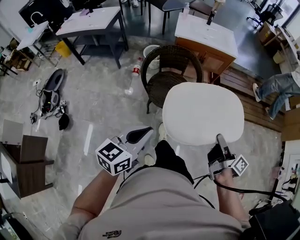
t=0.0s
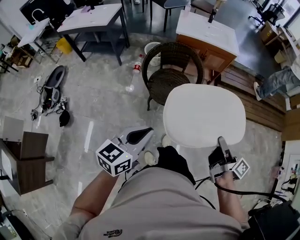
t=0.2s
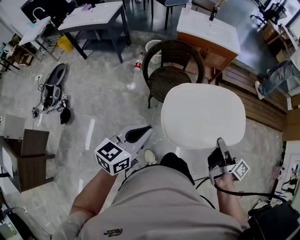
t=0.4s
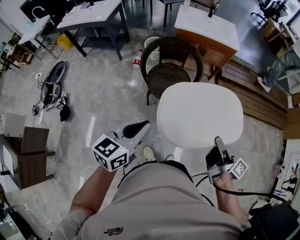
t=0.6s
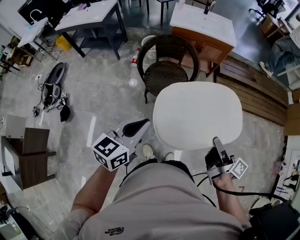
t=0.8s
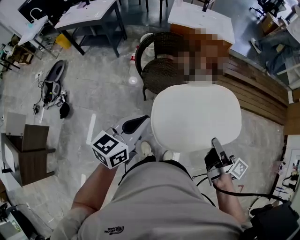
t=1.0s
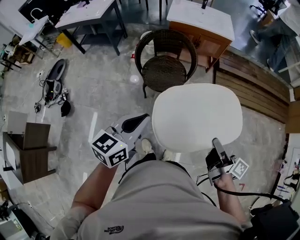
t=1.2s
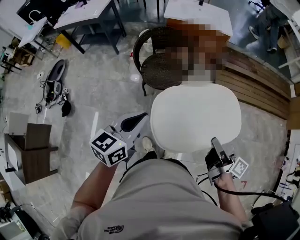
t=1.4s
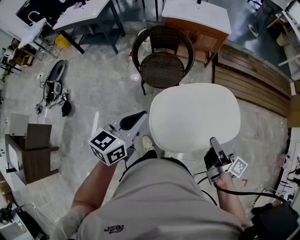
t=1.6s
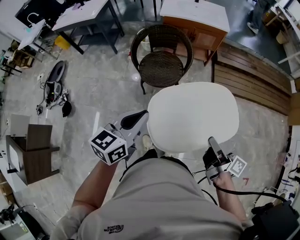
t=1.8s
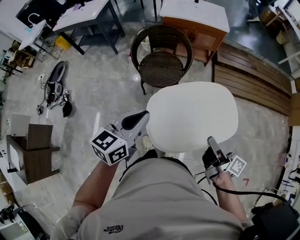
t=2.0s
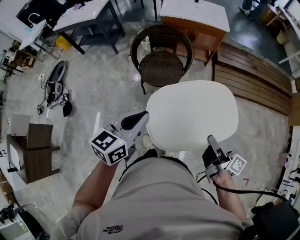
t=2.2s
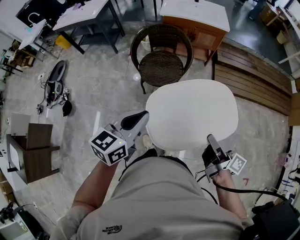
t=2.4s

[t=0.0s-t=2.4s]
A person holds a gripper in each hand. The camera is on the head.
t=0.0s to t=1.2s: The left gripper moves some 10 cm.

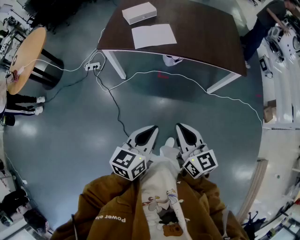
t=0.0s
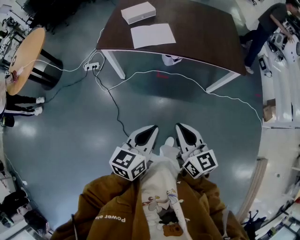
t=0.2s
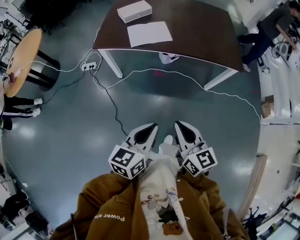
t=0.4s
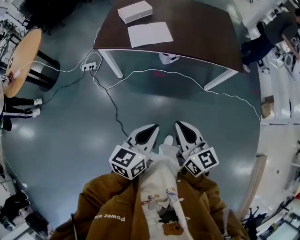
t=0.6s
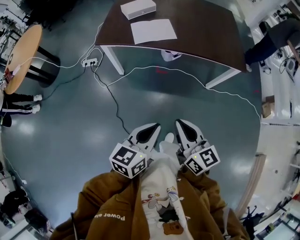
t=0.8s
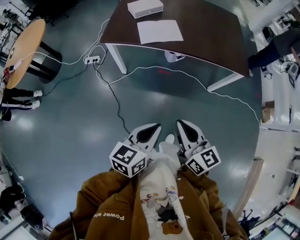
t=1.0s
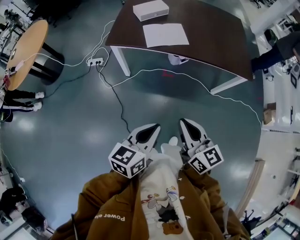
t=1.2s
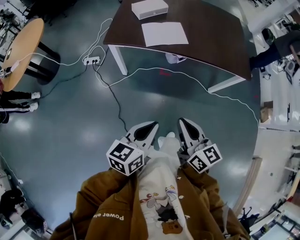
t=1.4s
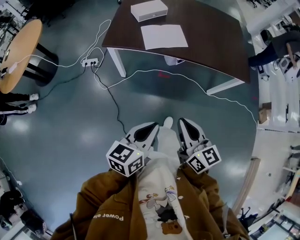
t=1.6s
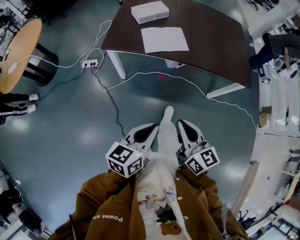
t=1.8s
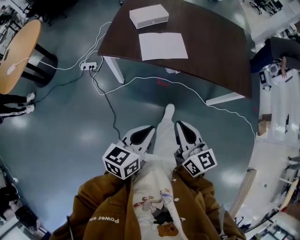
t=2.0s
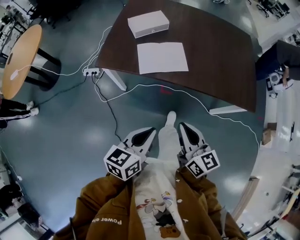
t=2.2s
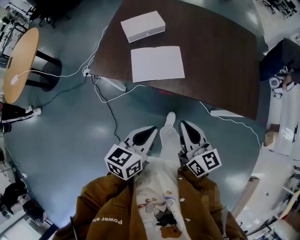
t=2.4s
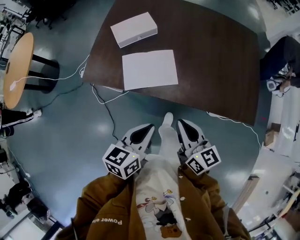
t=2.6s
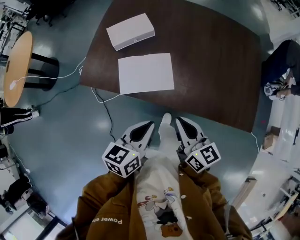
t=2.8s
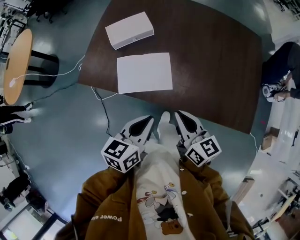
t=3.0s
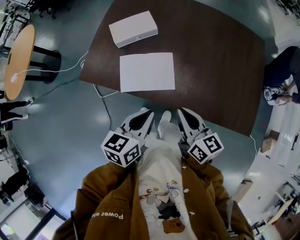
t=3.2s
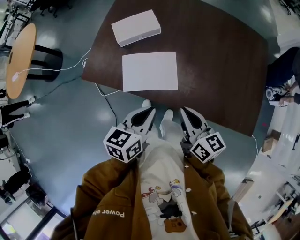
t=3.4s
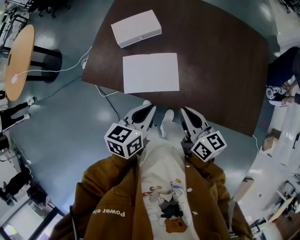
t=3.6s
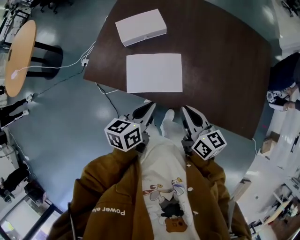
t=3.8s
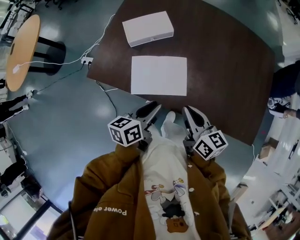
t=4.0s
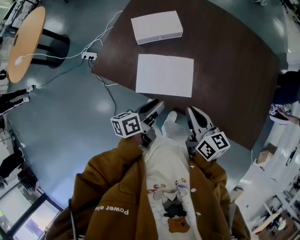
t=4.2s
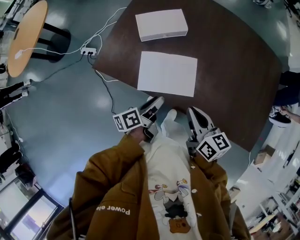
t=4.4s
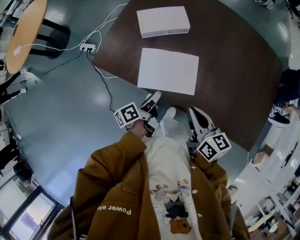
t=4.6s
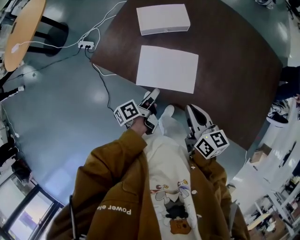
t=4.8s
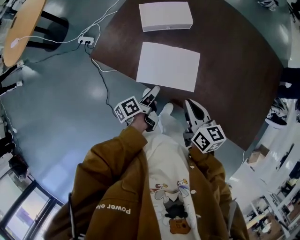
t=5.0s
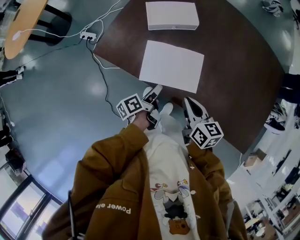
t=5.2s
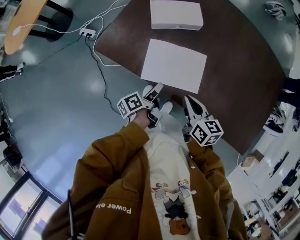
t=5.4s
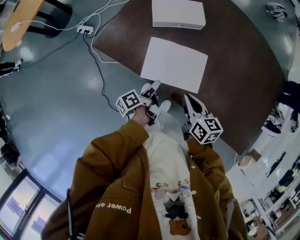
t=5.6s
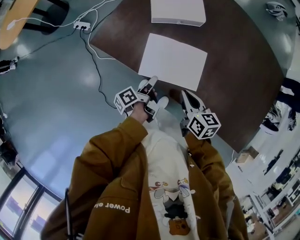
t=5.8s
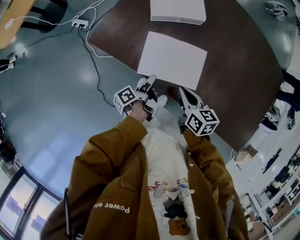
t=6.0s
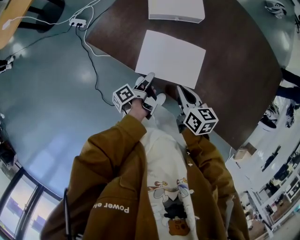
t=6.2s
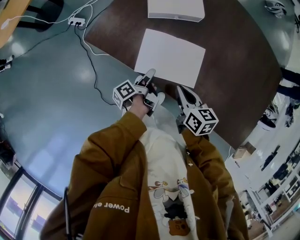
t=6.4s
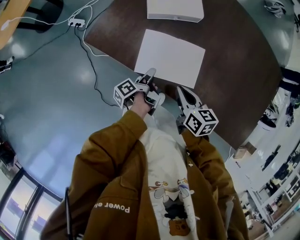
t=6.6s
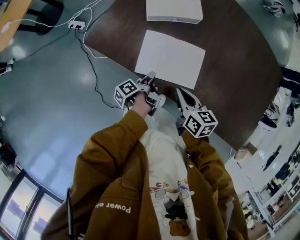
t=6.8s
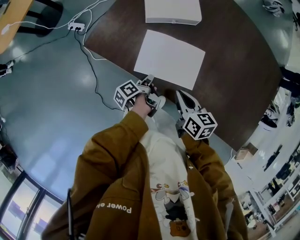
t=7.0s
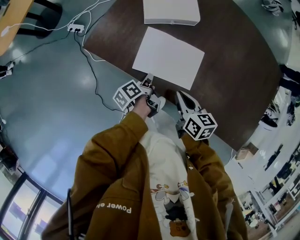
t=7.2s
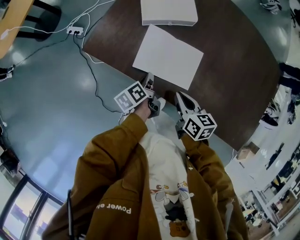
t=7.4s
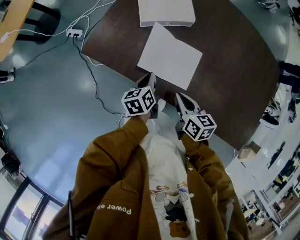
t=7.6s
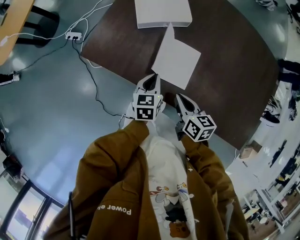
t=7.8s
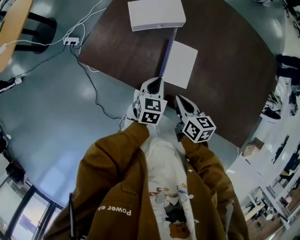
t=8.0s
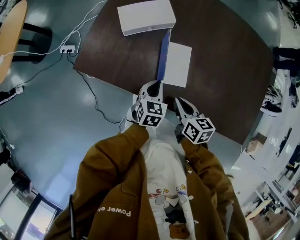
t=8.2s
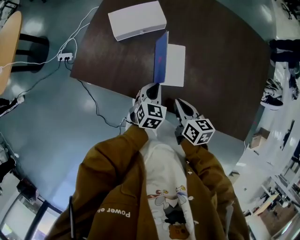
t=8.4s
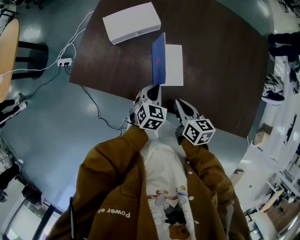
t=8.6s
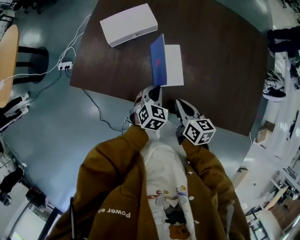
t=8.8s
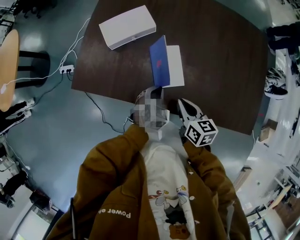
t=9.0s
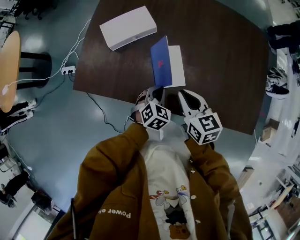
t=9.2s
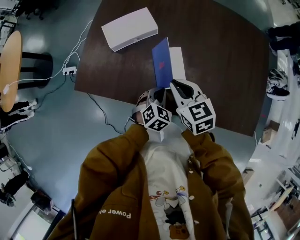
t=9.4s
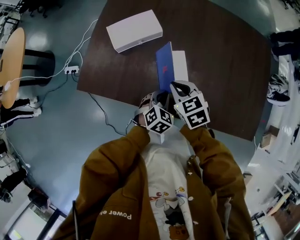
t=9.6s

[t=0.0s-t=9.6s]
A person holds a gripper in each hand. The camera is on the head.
t=0.0s to t=1.6s: Both grippers travel together to the left and forward, approximately 15 cm.
t=1.6s to t=3.2s: The pair of grippers is taken forward, approximately 50 cm.
t=3.2s to t=4.8s: The right gripper is displaced to the left and downward by about 10 cm, while the left gripper heads downward and to the left, covering about 20 cm, twists some 60 degrees counterclockwise, seen from behind, and opens its fingers.
t=4.8s to t=6.4s: The two grippers go approximately 10 cm downward. The left gripper swivels about 20 degrees.
t=6.4s to t=8.0s: The left gripper shifts roughly 10 cm to the right and upward, rotates around the line of its fingers by about 100 degrees, clockwise from behind, and closes its fingers.
t=8.0s to t=9.6s: The left gripper shifts approximately 10 cm to the right, and rotates some 40 degrees, while the right gripper is displaced forward by about 10 cm, and rotates some 30 degrees.

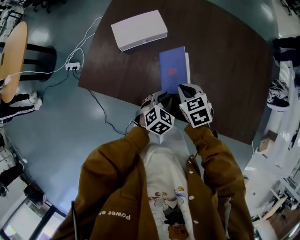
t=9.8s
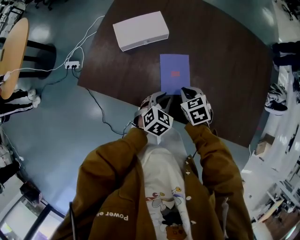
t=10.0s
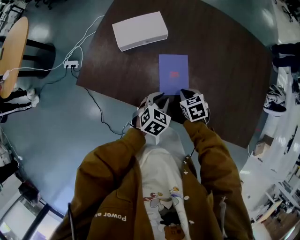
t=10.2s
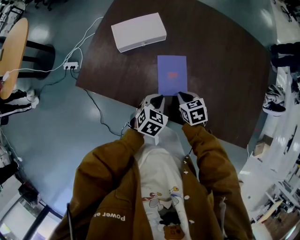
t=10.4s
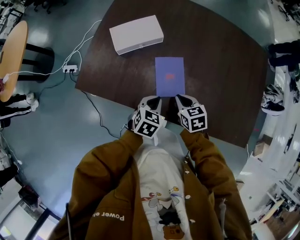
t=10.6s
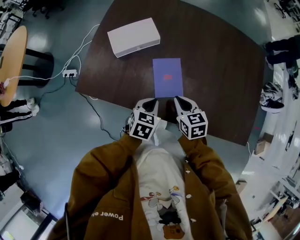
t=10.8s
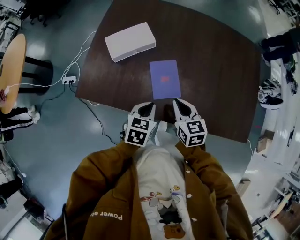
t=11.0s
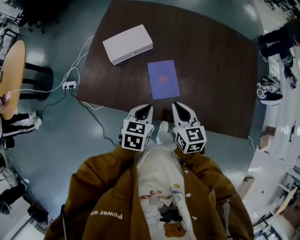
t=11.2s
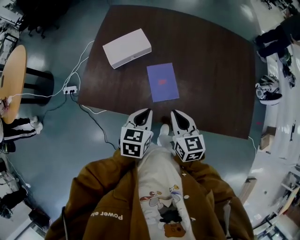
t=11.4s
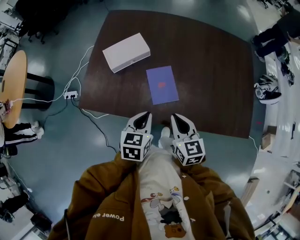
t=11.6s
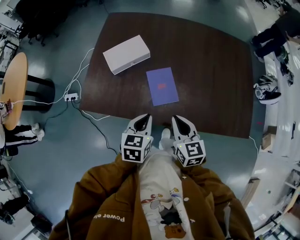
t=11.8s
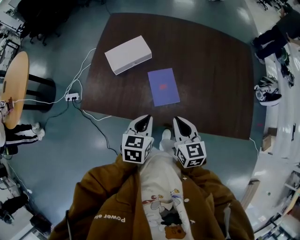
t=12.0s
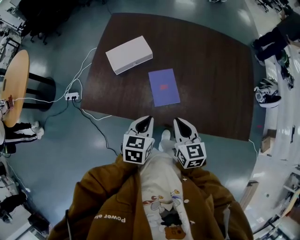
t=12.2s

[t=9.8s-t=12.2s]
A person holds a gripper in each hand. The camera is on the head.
t=9.8s to t=11.0s: The right gripper heads upward, covering about 5 cm, and swivels some 30 degrees. Meanwhile the left gripper heads upward, covering approximately 10 cm, rotates approximately 20 degrees, and closes.
t=11.0s to t=12.2s: The left gripper travels upward by approximately 5 cm, while the right gripper shifts about 10 cm backward and upward.

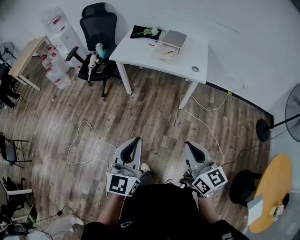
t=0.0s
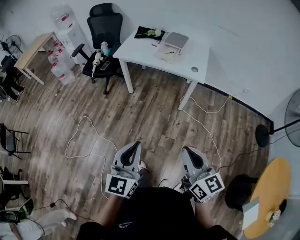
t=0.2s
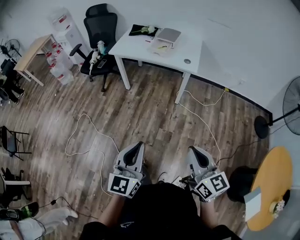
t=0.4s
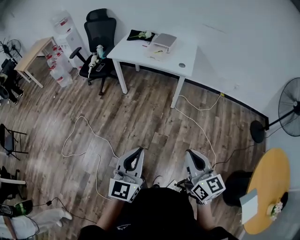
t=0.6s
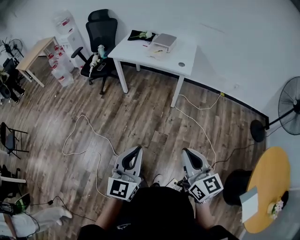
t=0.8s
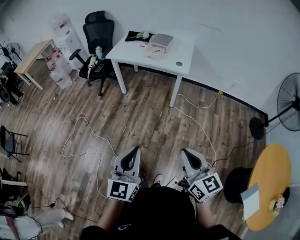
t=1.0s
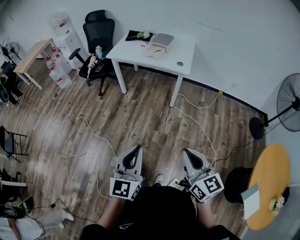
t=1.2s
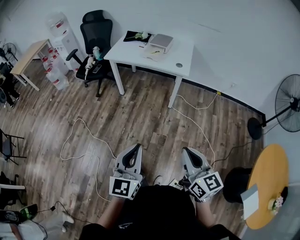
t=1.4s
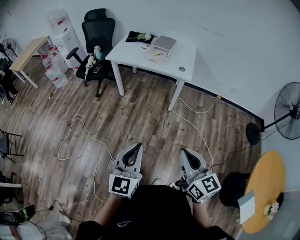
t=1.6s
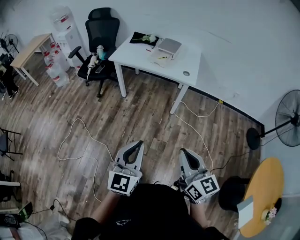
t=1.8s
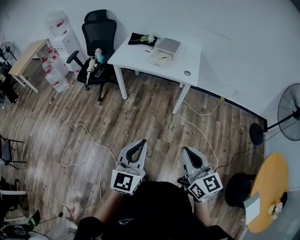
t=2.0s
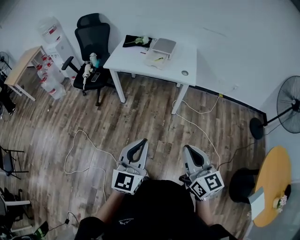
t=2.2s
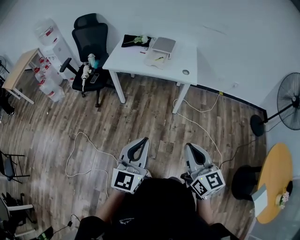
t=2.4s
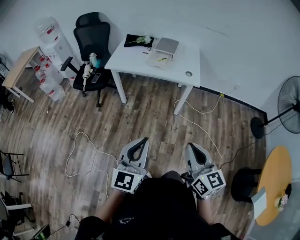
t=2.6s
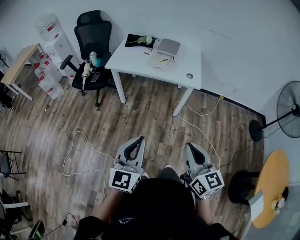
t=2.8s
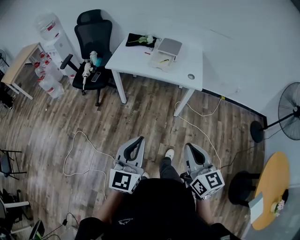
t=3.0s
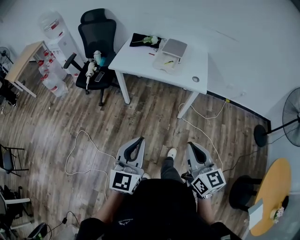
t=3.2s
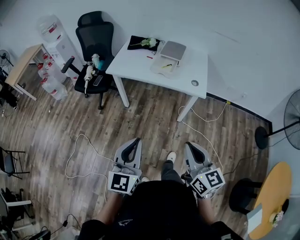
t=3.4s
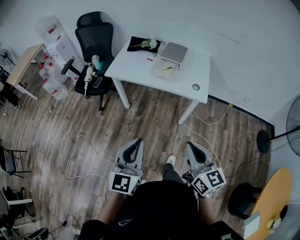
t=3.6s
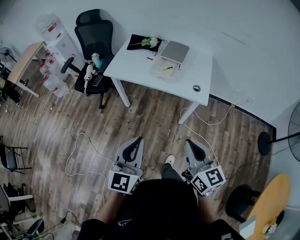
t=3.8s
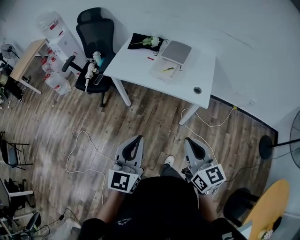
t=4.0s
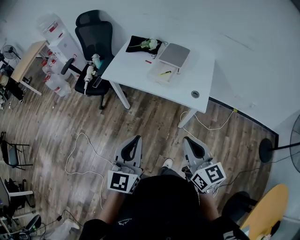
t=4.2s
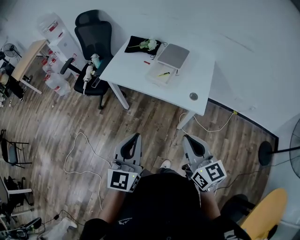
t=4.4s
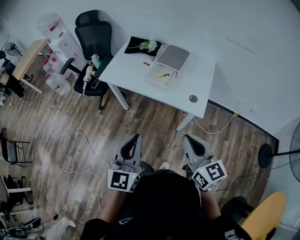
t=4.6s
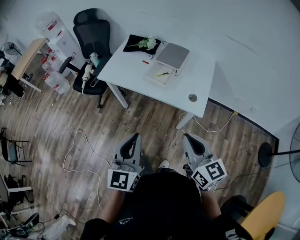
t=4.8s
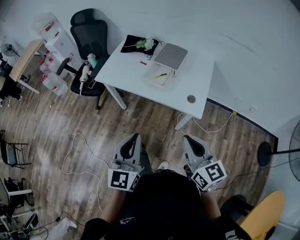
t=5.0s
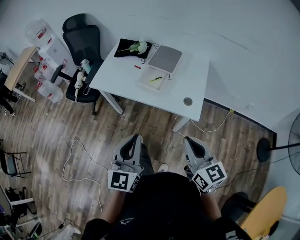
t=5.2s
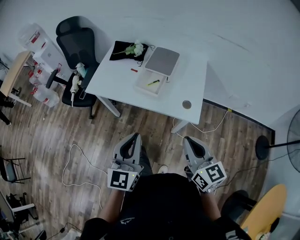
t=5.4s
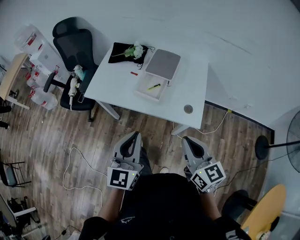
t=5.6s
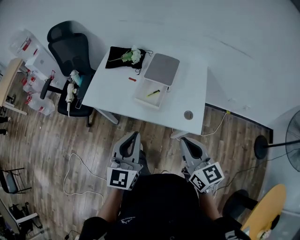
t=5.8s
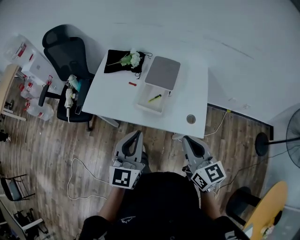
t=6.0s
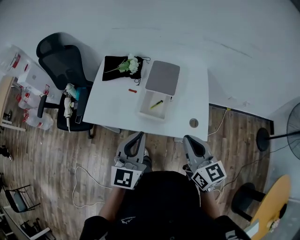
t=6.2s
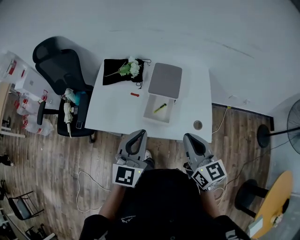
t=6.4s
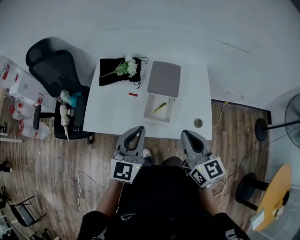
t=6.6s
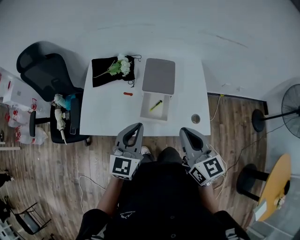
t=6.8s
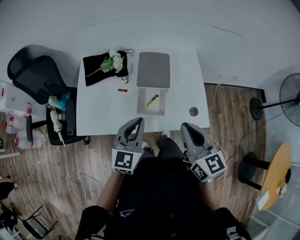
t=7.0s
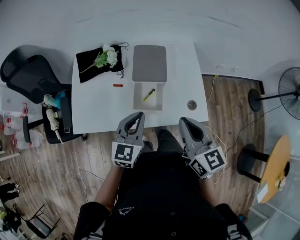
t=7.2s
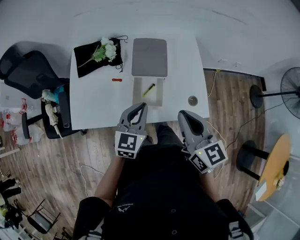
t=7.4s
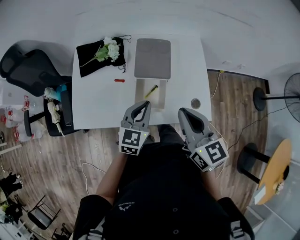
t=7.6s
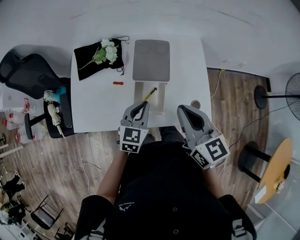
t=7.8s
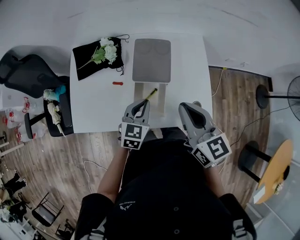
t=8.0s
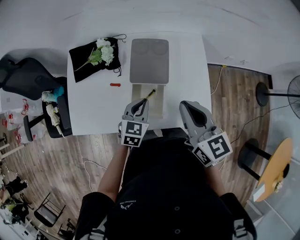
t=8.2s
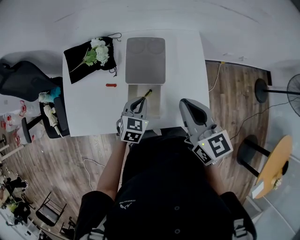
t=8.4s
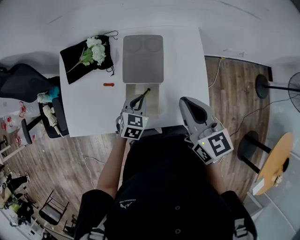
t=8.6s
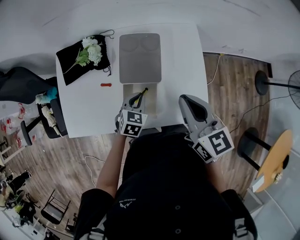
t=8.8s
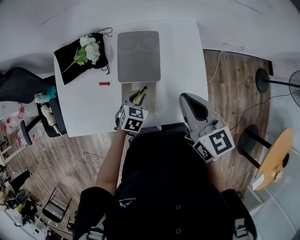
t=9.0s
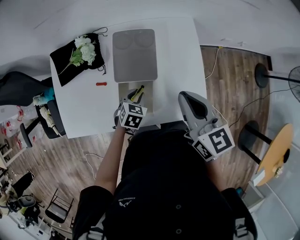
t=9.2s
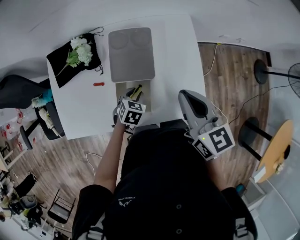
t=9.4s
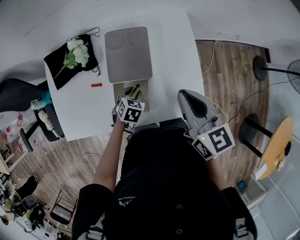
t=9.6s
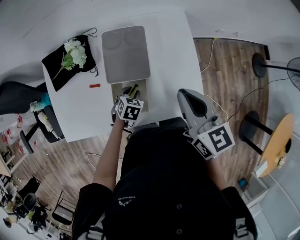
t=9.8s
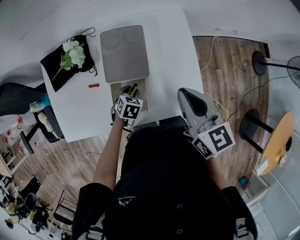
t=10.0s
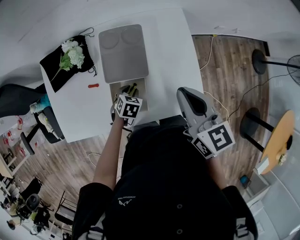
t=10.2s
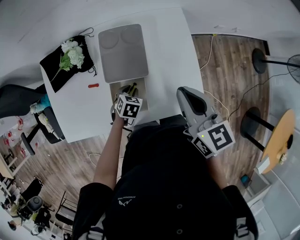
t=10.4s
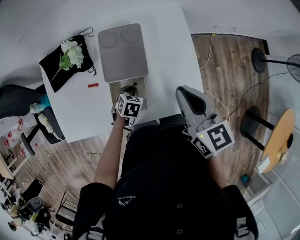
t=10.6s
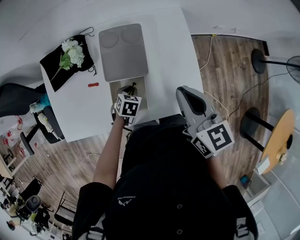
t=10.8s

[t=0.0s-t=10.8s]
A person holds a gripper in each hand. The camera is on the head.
t=0.0s to t=1.6s: The left gripper travels backward and to the right by some 15 cm. The right gripper is displaced backward by some 15 cm.
t=1.6s to t=3.0s: The grippers both shift forward and to the left by roughly 20 cm.
t=3.0s to t=4.6s: Both grippers move forward and to the right, some 30 cm.
t=4.6s to t=6.2s: Both grippers travel together forward, some 30 cm.
t=6.2s to t=7.8s: The right gripper travels forward by roughly 15 cm; the left gripper goes about 25 cm forward and downward, and swivels approximately 30 degrees.
t=7.8s to t=9.2s: The left gripper moves downward and forward, some 15 cm, points its fingers approximately 30 degrees further downward, and opens. Meanwhile the right gripper moves forward and to the right, approximately 10 cm.
t=9.2s to t=10.8s: The left gripper goes approximately 5 cm downward.
